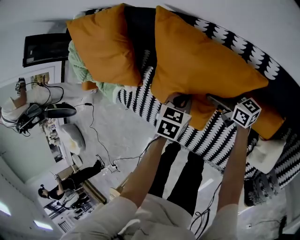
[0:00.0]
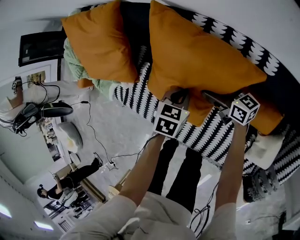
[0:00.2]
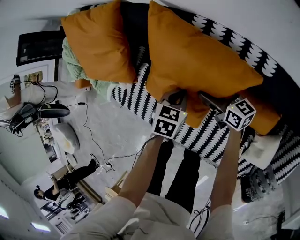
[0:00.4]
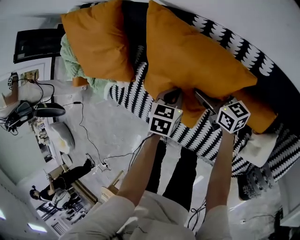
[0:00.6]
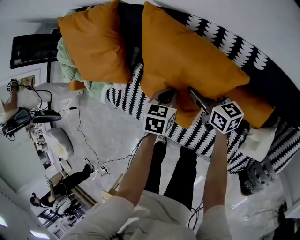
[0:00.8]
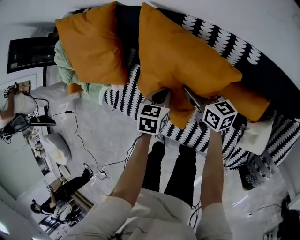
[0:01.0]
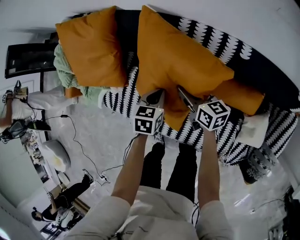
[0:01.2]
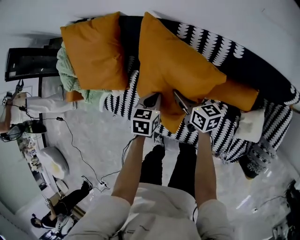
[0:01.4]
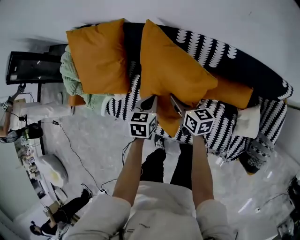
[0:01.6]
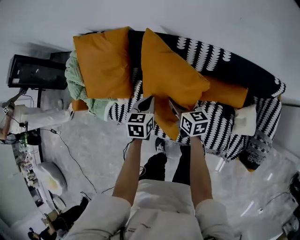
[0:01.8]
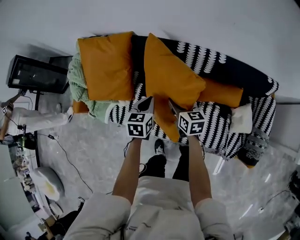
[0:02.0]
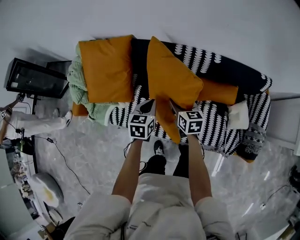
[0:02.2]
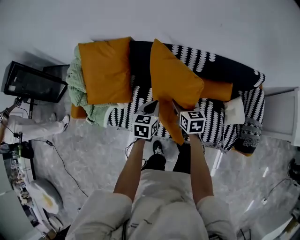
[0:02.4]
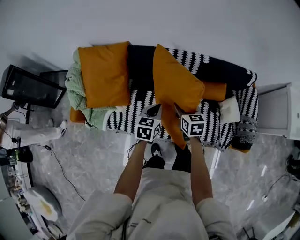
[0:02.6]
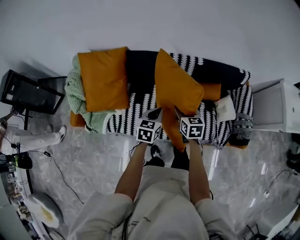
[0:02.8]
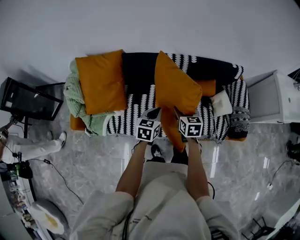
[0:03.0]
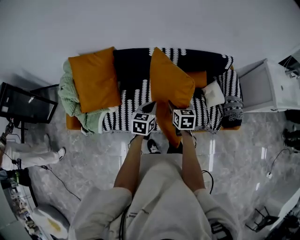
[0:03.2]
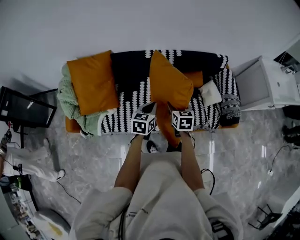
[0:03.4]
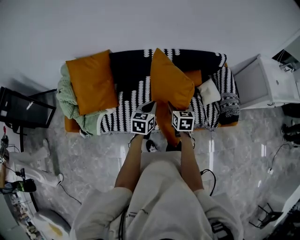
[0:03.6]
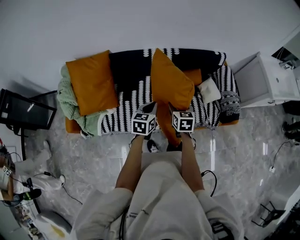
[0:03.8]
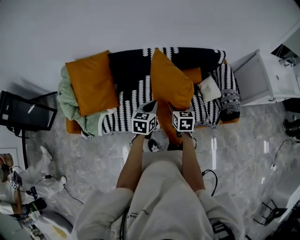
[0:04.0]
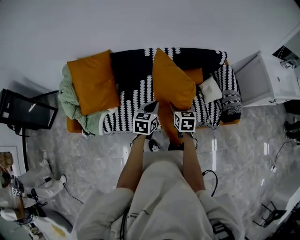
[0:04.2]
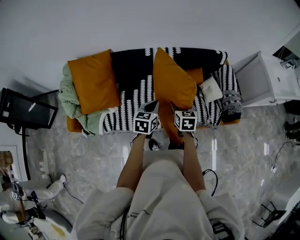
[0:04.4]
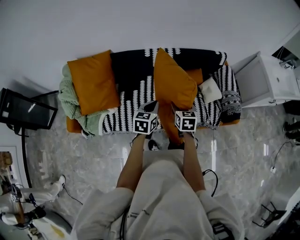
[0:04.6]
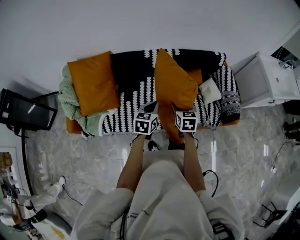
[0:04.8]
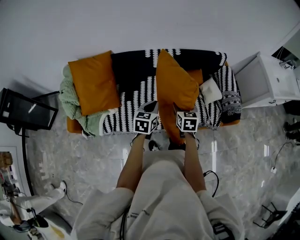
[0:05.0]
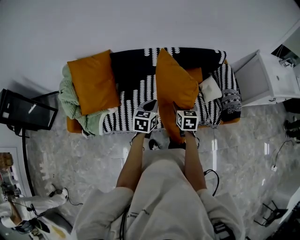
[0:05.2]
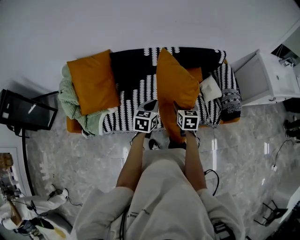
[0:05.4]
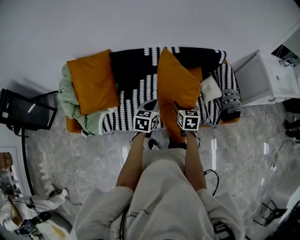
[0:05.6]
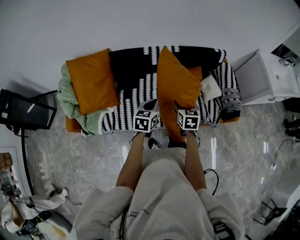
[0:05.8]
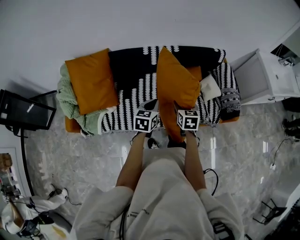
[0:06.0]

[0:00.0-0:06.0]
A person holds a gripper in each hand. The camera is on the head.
0:00.0 to 0:01.6: The right gripper heads upward, to the left and backward, covering roughly 20 cm, turns by approximately 20 degrees, and closes its fingers. Meanwhile the left gripper heads upward and to the left, covering approximately 15 cm.
0:01.6 to 0:03.0: The right gripper ends up about 25 cm from where it was, and rotates about 40 degrees. Meanwhile the left gripper shifts roughly 15 cm upward, and rotates about 30 degrees.
0:03.0 to 0:04.4: The left gripper moves roughly 5 cm. The right gripper goes approximately 10 cm backward and to the right.
0:04.4 to 0:06.0: The grippers make only small movements.

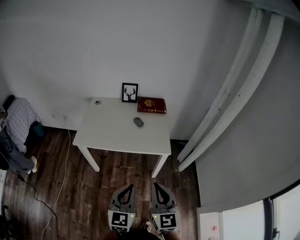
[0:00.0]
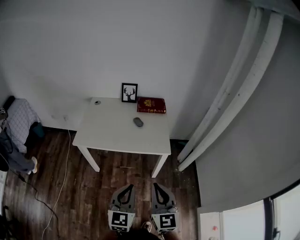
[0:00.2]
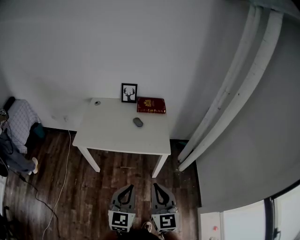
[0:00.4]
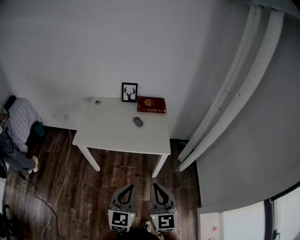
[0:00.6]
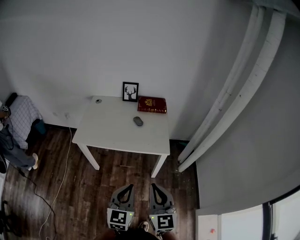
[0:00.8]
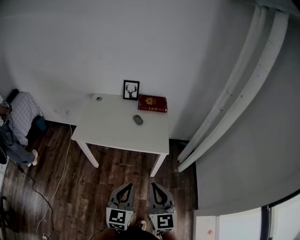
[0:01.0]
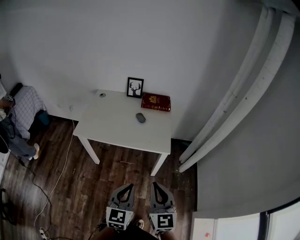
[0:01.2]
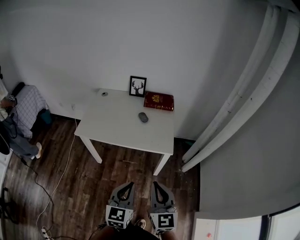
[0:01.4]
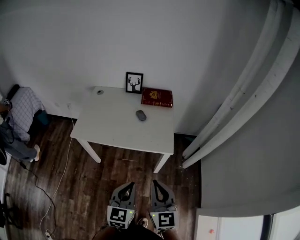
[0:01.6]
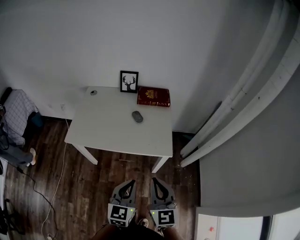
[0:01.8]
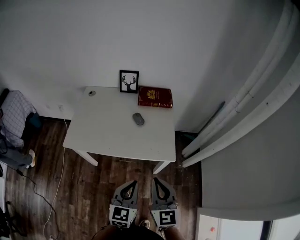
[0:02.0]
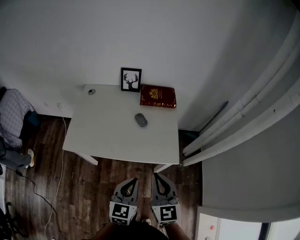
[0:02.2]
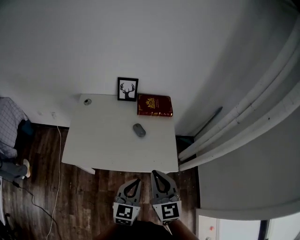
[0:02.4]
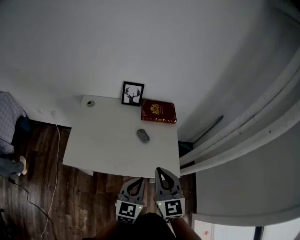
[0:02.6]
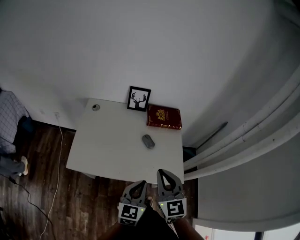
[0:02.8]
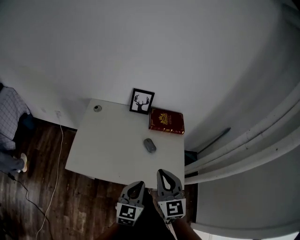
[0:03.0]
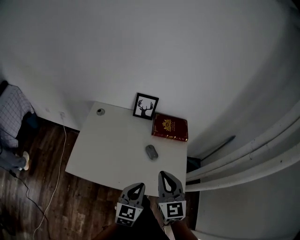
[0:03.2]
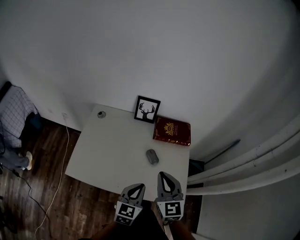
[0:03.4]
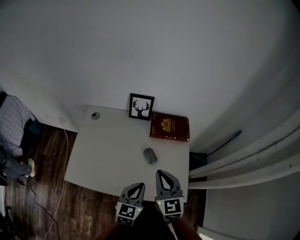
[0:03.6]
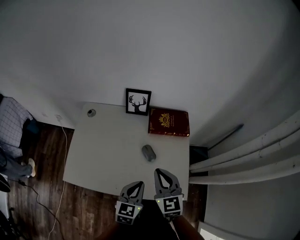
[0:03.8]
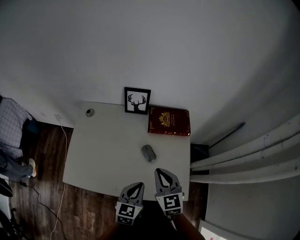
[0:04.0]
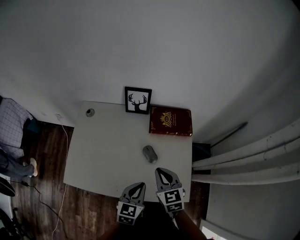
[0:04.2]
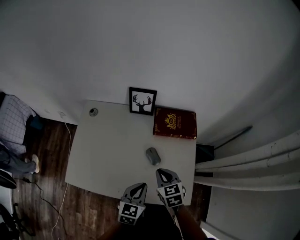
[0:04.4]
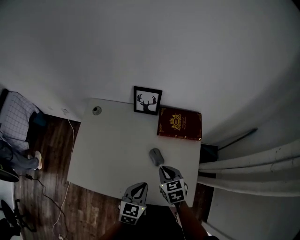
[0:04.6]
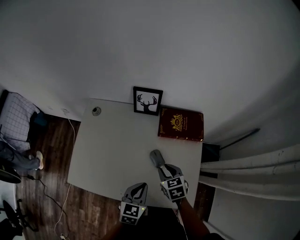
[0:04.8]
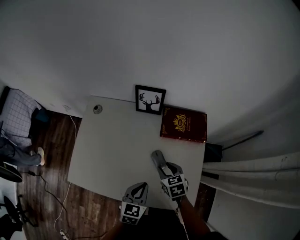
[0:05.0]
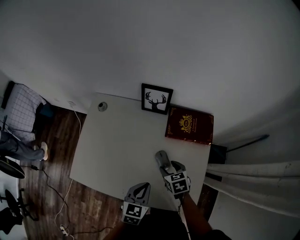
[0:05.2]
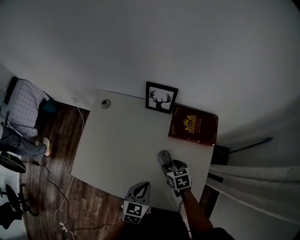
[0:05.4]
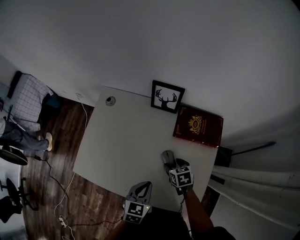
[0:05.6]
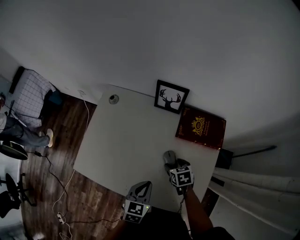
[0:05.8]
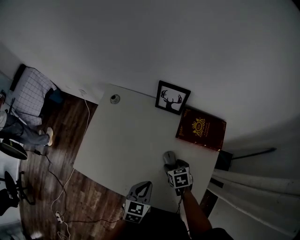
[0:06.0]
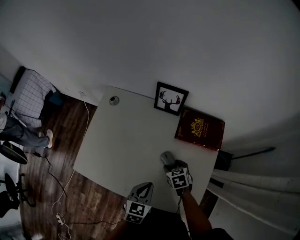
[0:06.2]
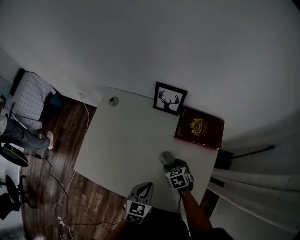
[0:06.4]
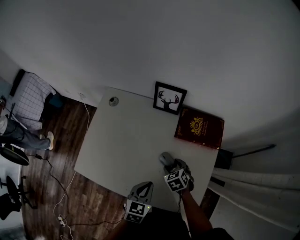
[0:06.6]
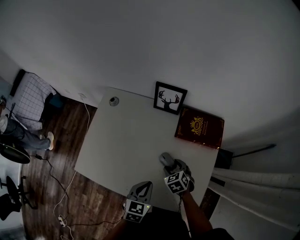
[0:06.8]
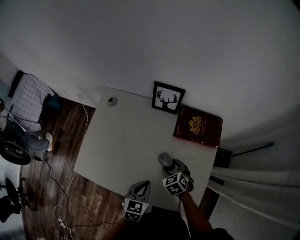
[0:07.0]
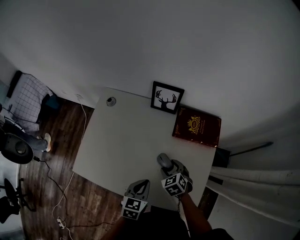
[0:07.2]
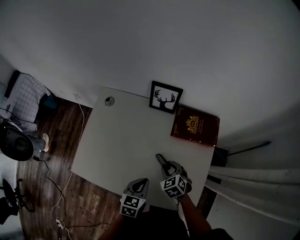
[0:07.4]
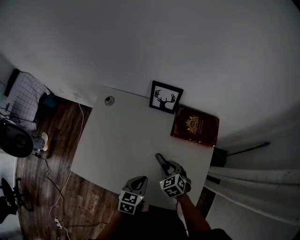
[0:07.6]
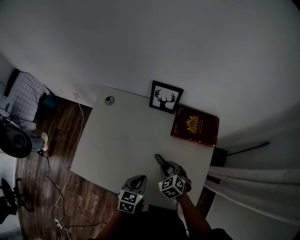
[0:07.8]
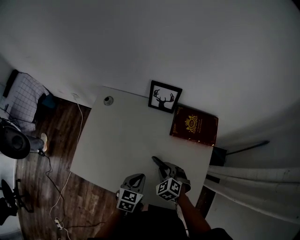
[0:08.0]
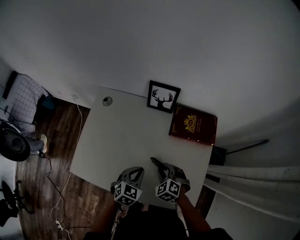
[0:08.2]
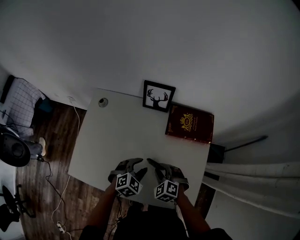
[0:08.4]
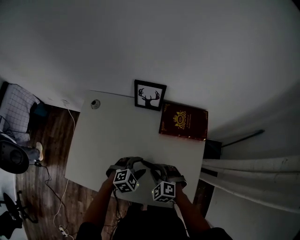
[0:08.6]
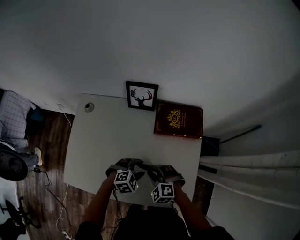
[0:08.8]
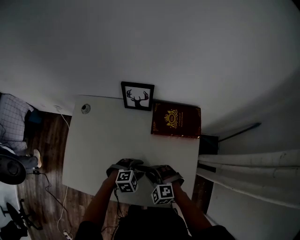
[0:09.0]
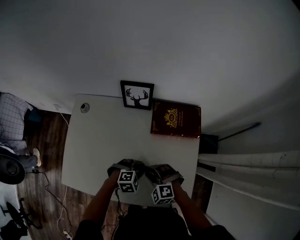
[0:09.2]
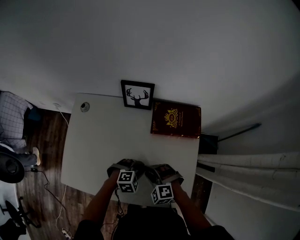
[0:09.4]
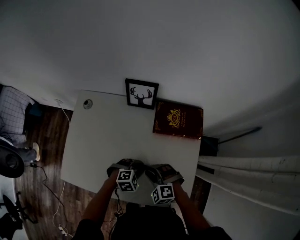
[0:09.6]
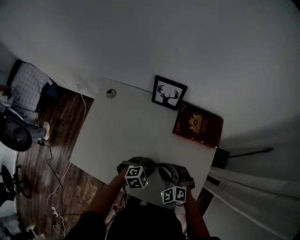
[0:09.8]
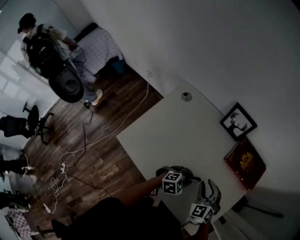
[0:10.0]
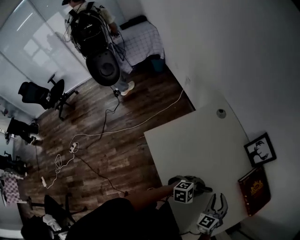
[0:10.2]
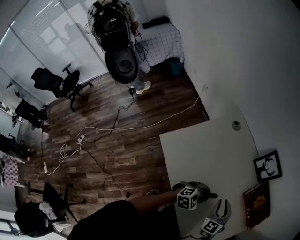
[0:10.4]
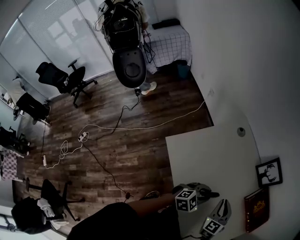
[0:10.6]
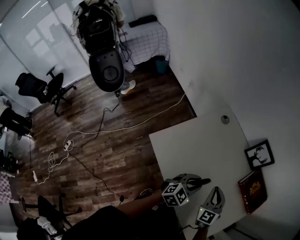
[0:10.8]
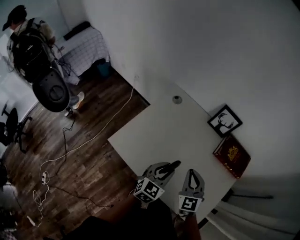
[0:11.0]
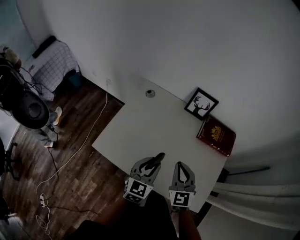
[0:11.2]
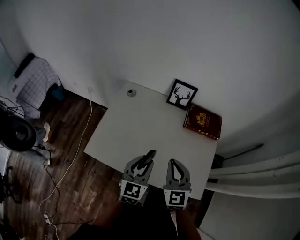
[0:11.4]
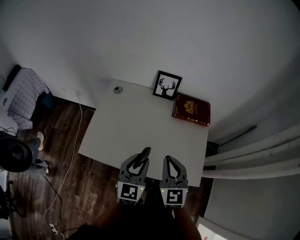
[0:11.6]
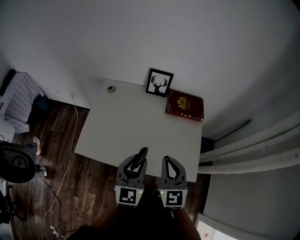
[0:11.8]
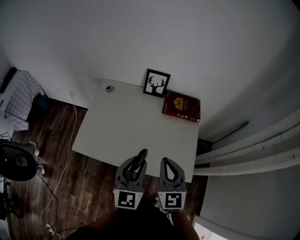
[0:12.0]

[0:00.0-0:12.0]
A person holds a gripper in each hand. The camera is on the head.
0:00.0 to 0:01.6: The left gripper goes about 10 cm forward and downward. Meanwhile the right gripper goes roughly 5 cm forward.
0:01.6 to 0:03.0: The left gripper shifts some 25 cm forward. The right gripper heads forward and to the left, covering about 35 cm.
0:03.0 to 0:04.4: The left gripper heads forward and downward, covering about 15 cm, while the right gripper travels downward and forward by about 25 cm, and tilts its fingers some 30 degrees downward.
0:04.4 to 0:06.0: The right gripper is displaced downward and forward by approximately 15 cm, turns by roughly 20 degrees, and opens its fingers. The left gripper is displaced downward by roughly 5 cm.
0:06.0 to 0:07.6: The right gripper shifts by about 5 cm, rotates approximately 30 degrees, and closes.
0:07.6 to 0:09.0: The left gripper heads downward, to the right and forward, covering approximately 10 cm, twists roughly 60 degrees clockwise, seen from behind, and opens, while the right gripper swivels some 40 degrees.
0:09.0 to 0:10.4: The right gripper shifts some 10 cm upward and to the left, and turns by approximately 30 degrees, while the left gripper goes about 10 cm to the left and upward, rotates roughly 50 degrees, and closes its fingers.
0:10.4 to 0:12.0: The right gripper goes some 25 cm backward and upward, and swivels some 40 degrees. The left gripper shifts roughly 25 cm upward and backward, and points its fingers some 30 degrees further upward.

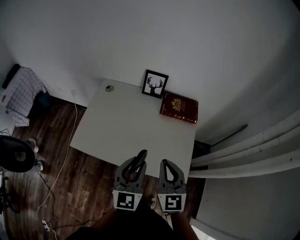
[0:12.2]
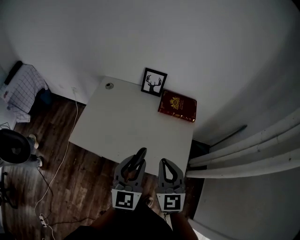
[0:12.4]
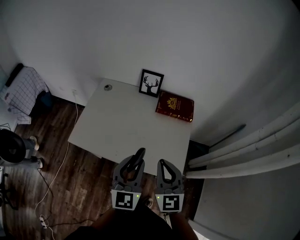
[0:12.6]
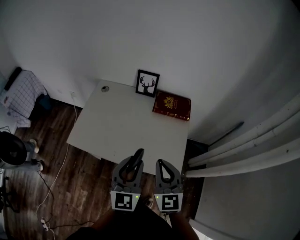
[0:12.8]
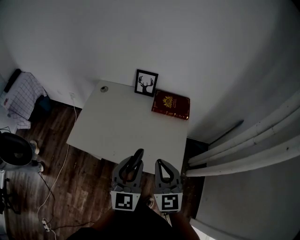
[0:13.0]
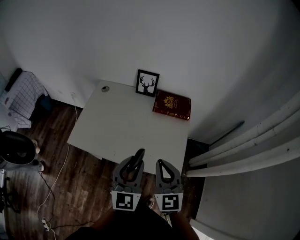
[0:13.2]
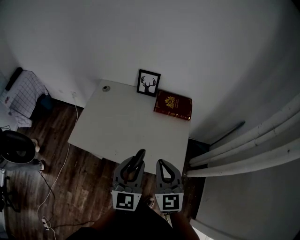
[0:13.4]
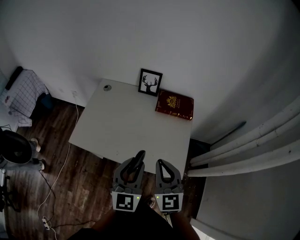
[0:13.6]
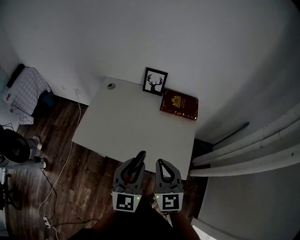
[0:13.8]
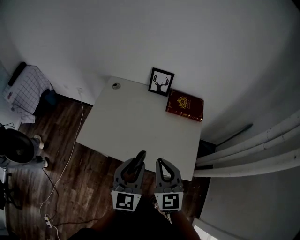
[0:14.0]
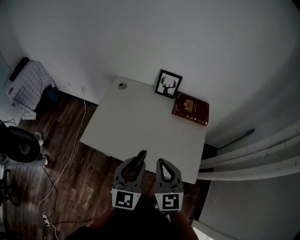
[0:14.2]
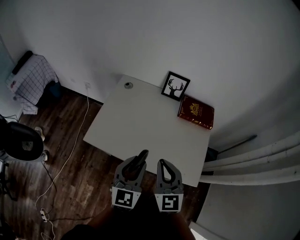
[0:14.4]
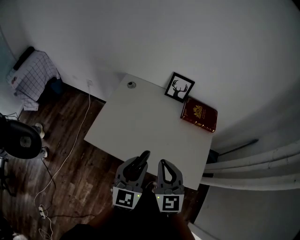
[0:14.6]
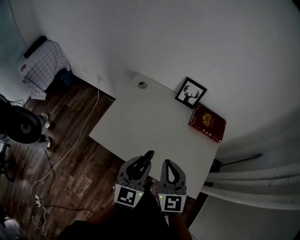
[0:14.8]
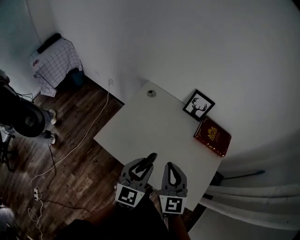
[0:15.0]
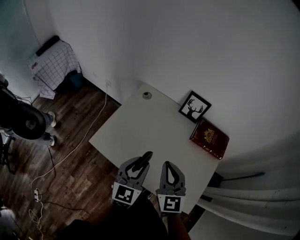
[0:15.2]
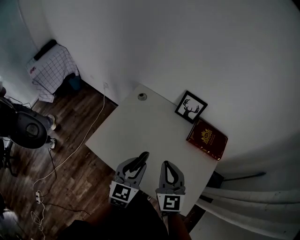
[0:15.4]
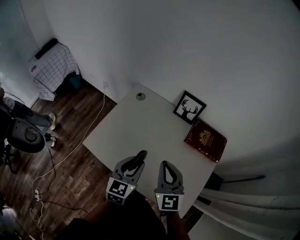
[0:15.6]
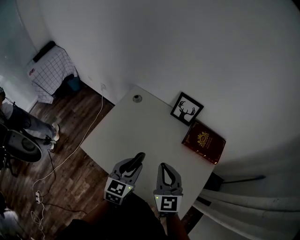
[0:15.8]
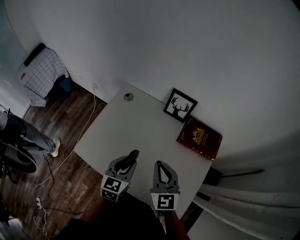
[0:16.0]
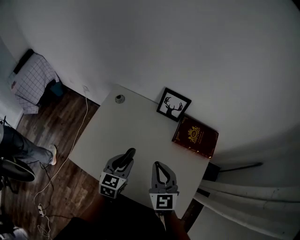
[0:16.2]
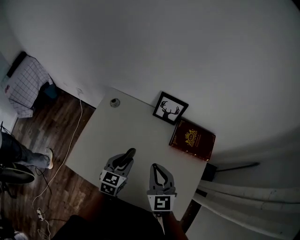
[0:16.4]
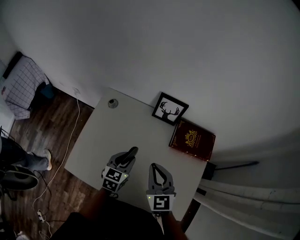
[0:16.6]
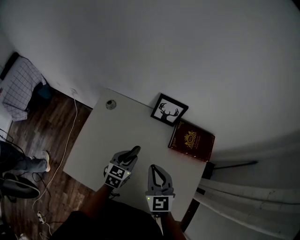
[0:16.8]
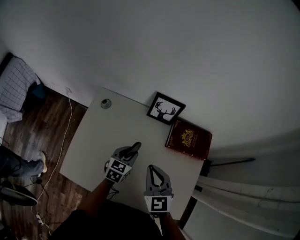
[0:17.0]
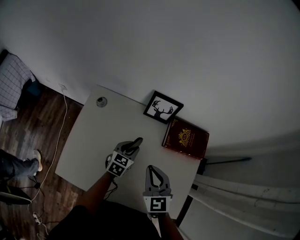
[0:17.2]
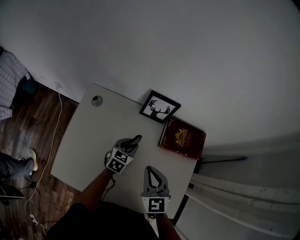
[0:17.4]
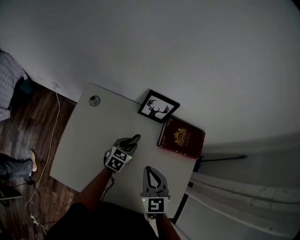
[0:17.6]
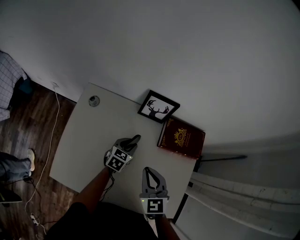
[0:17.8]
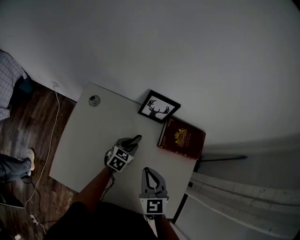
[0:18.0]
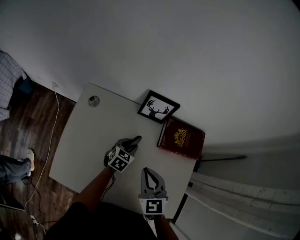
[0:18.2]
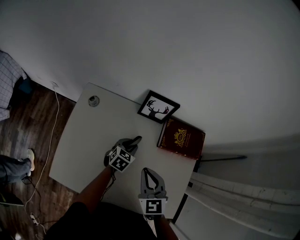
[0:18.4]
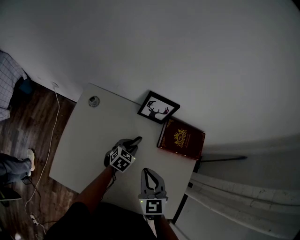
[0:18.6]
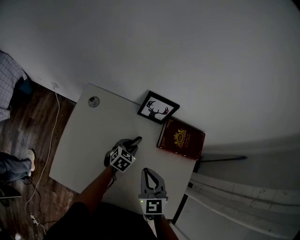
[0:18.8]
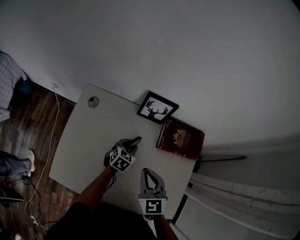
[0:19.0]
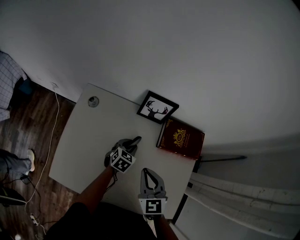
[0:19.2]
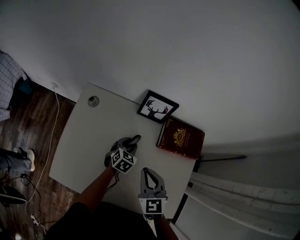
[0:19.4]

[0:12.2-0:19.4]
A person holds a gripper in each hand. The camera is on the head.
0:12.2 to 0:13.6: The left gripper changes place by some 5 cm.
0:13.6 to 0:15.0: The grippers both shift to the left and forward by roughly 15 cm.
0:15.0 to 0:16.6: The right gripper shifts roughly 20 cm forward, downward and to the right; the left gripper is displaced forward and downward by some 25 cm, and swivels roughly 20 degrees.
0:16.6 to 0:18.0: The left gripper goes about 15 cm forward, downward and to the right.
0:18.0 to 0:19.4: There are only small adjustments of the grippers.
